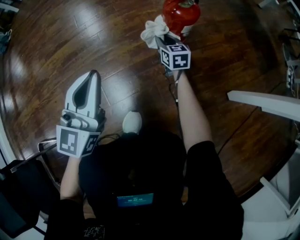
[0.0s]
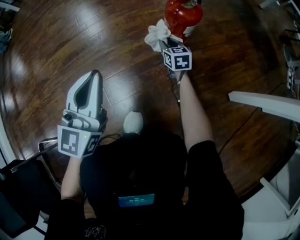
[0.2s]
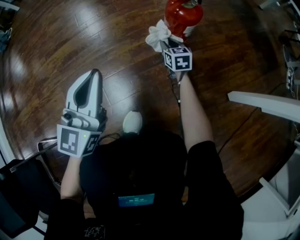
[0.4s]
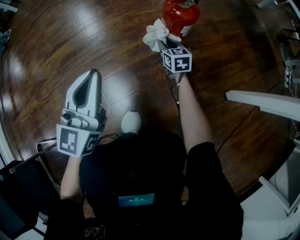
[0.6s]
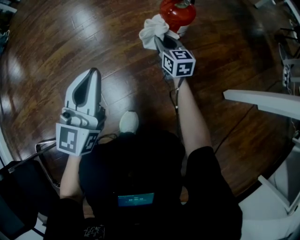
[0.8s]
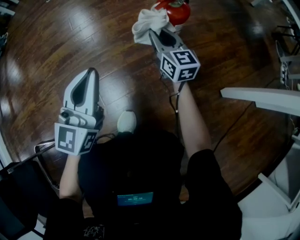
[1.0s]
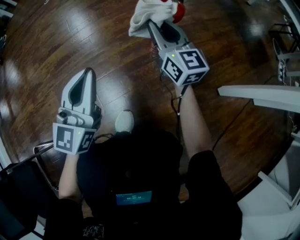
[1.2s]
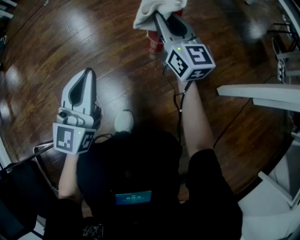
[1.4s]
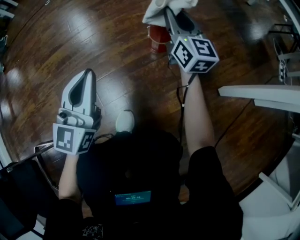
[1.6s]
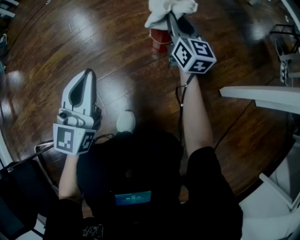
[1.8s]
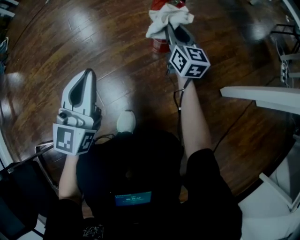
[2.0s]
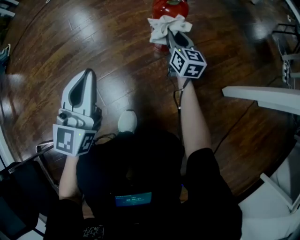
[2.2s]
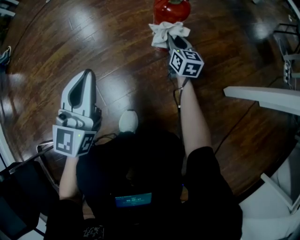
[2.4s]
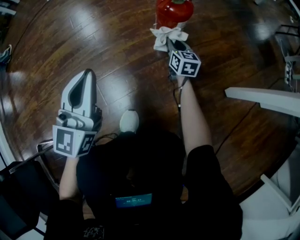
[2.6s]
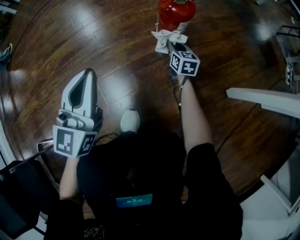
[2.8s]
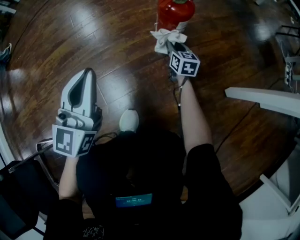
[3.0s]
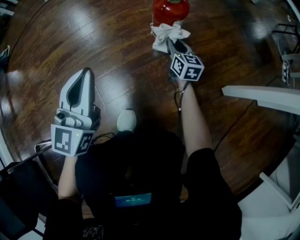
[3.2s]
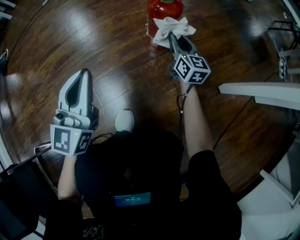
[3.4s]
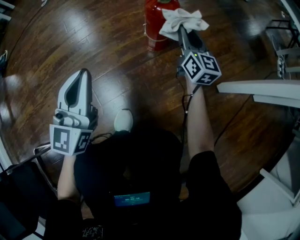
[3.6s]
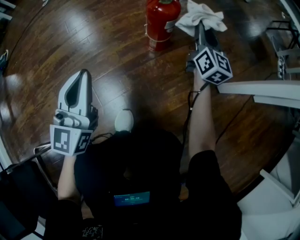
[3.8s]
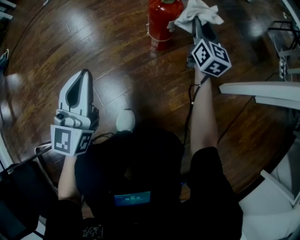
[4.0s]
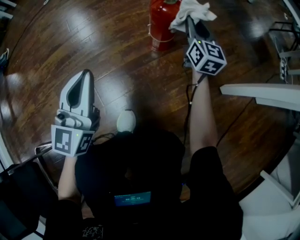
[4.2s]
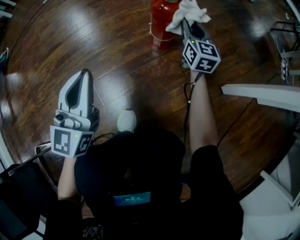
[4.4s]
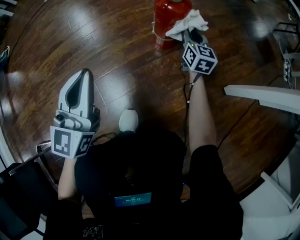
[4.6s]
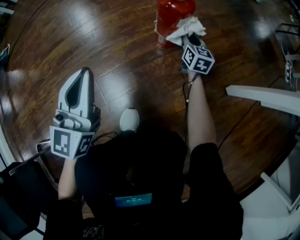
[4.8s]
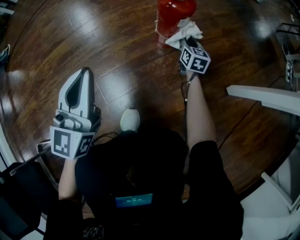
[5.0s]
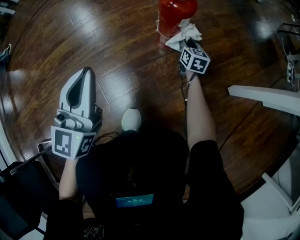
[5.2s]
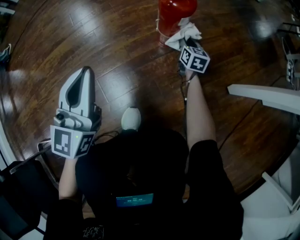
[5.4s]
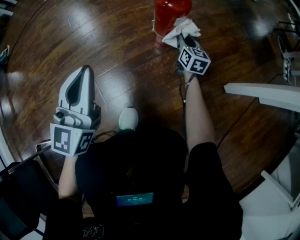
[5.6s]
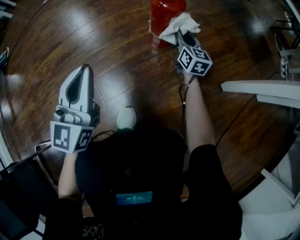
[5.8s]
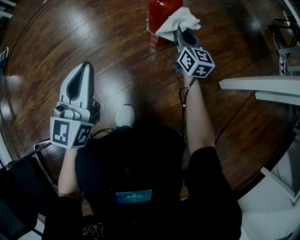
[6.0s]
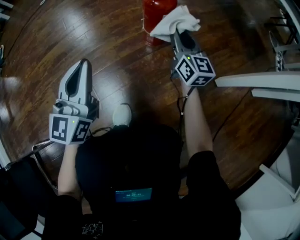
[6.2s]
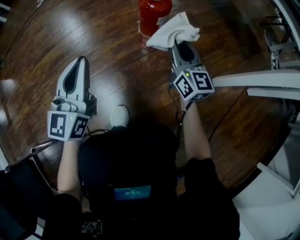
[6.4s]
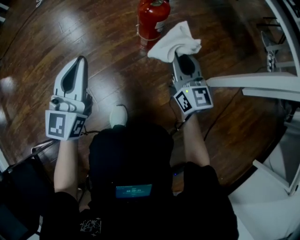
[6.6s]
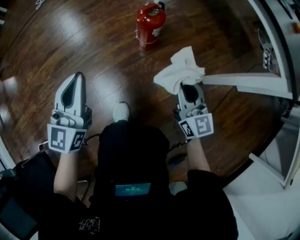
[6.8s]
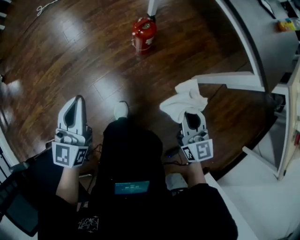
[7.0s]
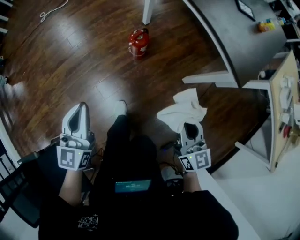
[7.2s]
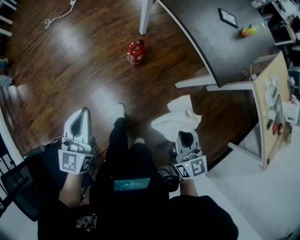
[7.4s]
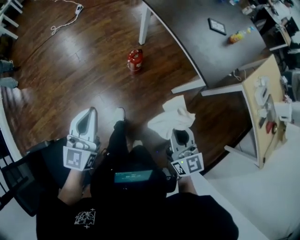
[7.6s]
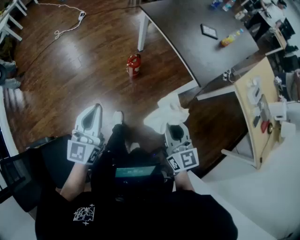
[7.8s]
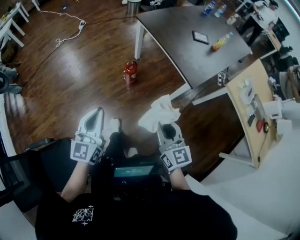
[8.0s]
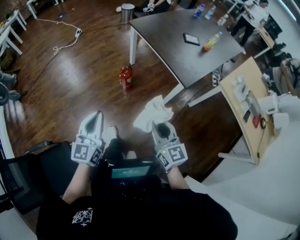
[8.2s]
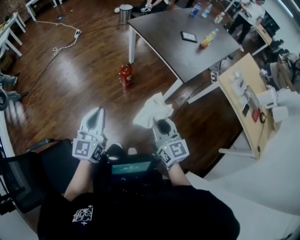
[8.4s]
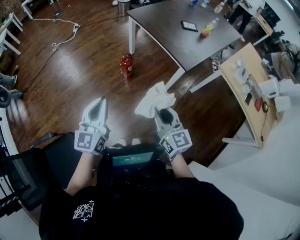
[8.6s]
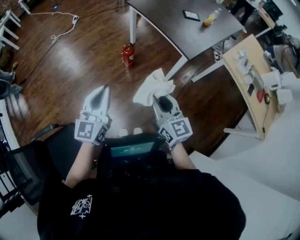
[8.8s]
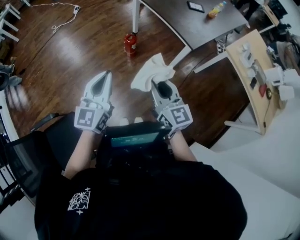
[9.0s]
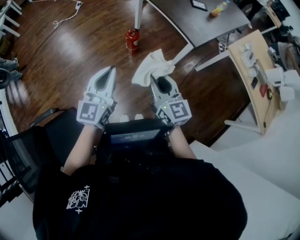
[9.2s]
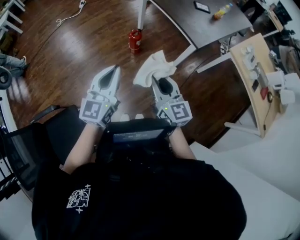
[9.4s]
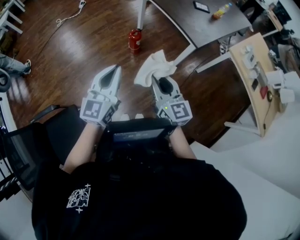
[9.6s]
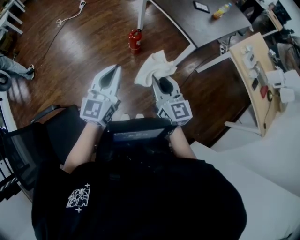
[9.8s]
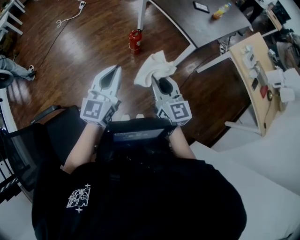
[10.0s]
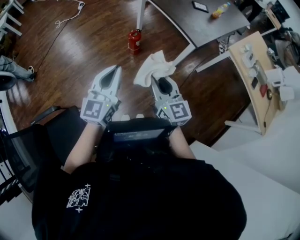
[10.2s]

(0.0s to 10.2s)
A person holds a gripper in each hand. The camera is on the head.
0.0s - 1.4s: The right gripper travels upward by approximately 25 cm, and tilts its fingers approximately 30 degrees upward.
1.4s - 3.0s: The right gripper goes roughly 30 cm downward, and tilts its fingers some 30 degrees downward.
3.0s - 4.4s: The right gripper heads upward, covering approximately 15 cm, and rotates roughly 20 degrees.
4.4s - 5.8s: The right gripper moves downward, about 5 cm.
5.8s - 7.2s: The right gripper is displaced upward and backward by about 60 cm; the left gripper is displaced upward by about 30 cm.
7.2s - 8.8s: The grippers both shift upward and backward by approximately 35 cm.
8.8s - 10.2s: The right gripper ends up about 5 cm from where it was.

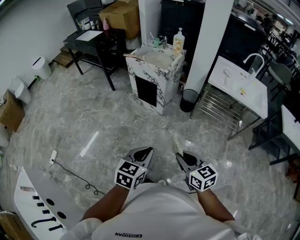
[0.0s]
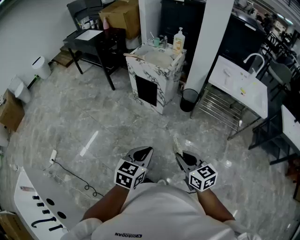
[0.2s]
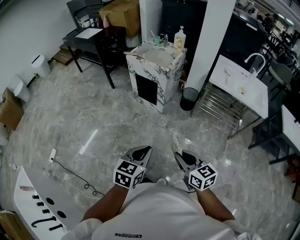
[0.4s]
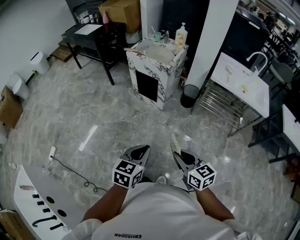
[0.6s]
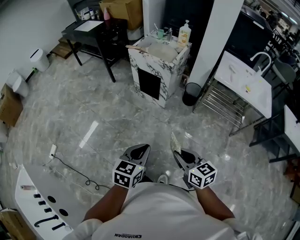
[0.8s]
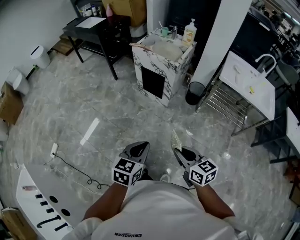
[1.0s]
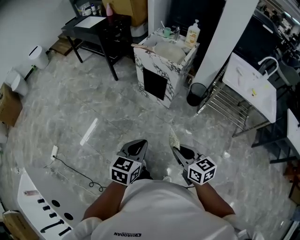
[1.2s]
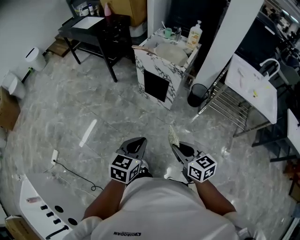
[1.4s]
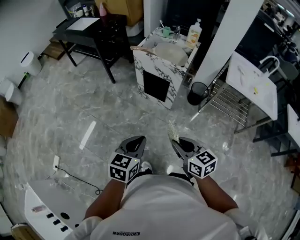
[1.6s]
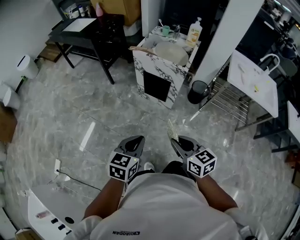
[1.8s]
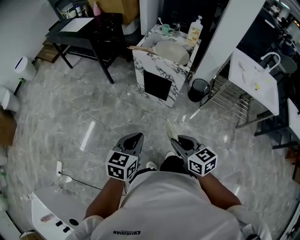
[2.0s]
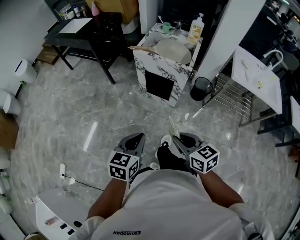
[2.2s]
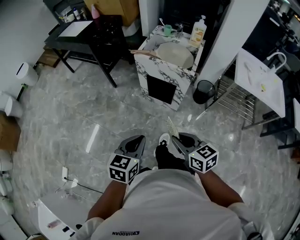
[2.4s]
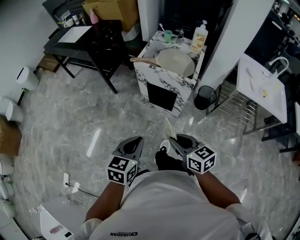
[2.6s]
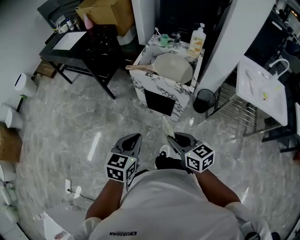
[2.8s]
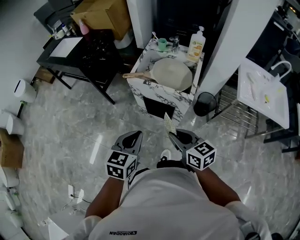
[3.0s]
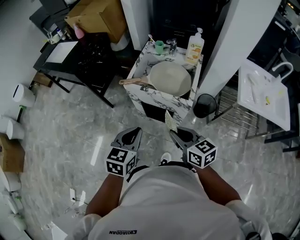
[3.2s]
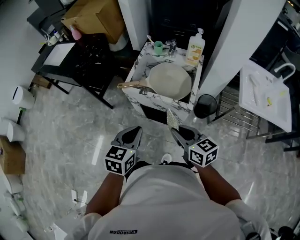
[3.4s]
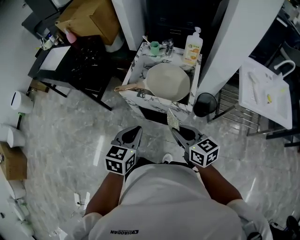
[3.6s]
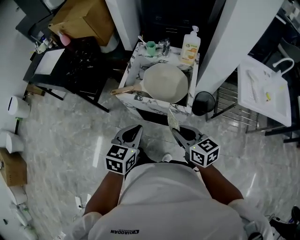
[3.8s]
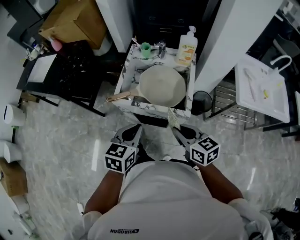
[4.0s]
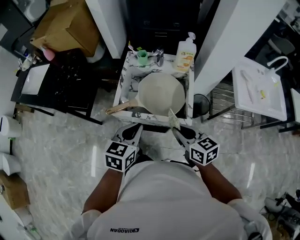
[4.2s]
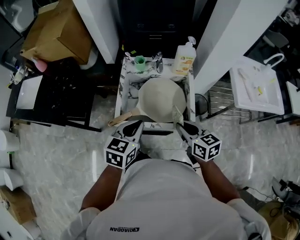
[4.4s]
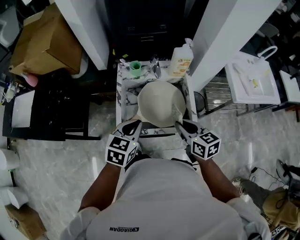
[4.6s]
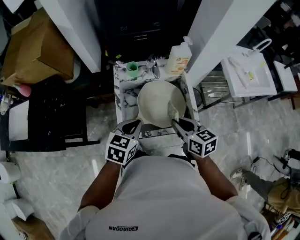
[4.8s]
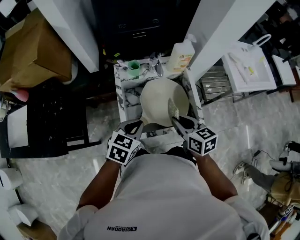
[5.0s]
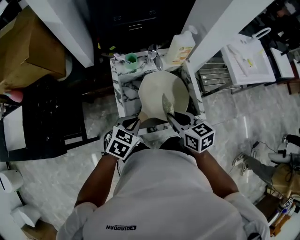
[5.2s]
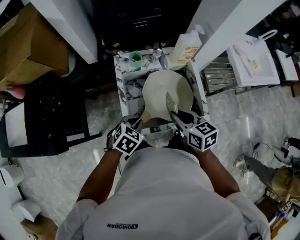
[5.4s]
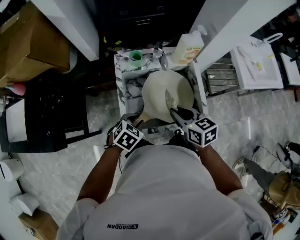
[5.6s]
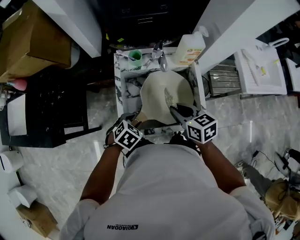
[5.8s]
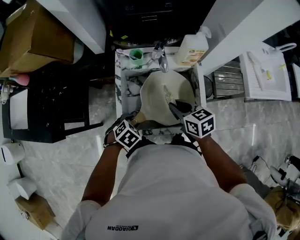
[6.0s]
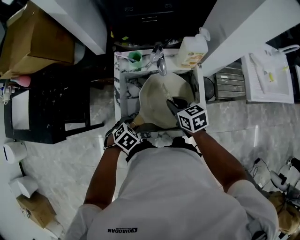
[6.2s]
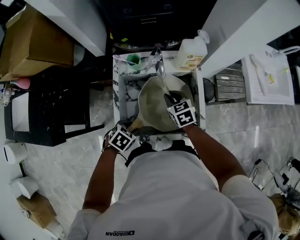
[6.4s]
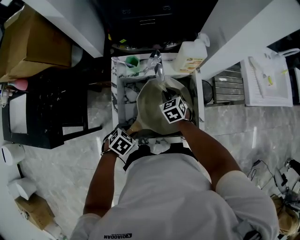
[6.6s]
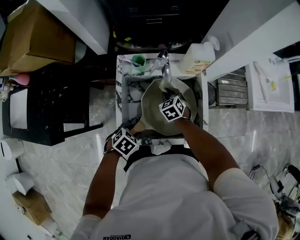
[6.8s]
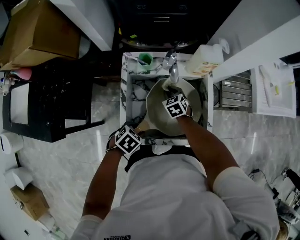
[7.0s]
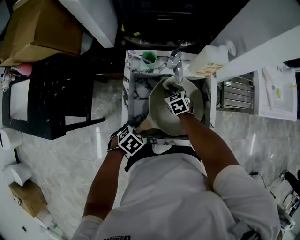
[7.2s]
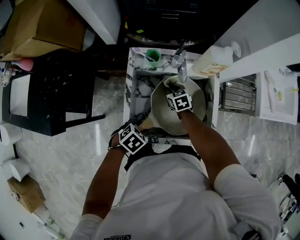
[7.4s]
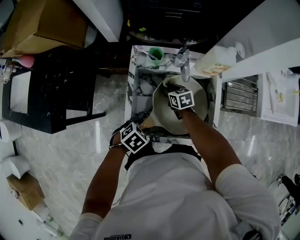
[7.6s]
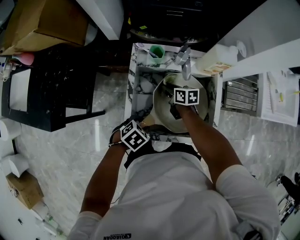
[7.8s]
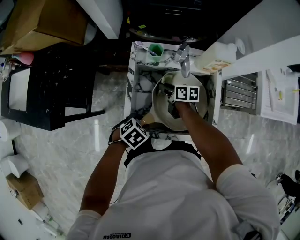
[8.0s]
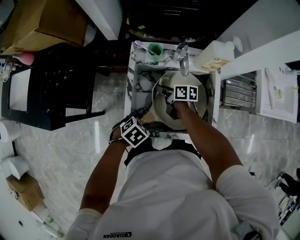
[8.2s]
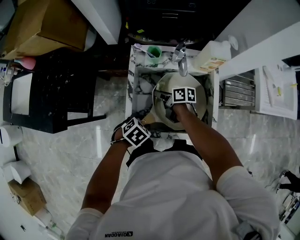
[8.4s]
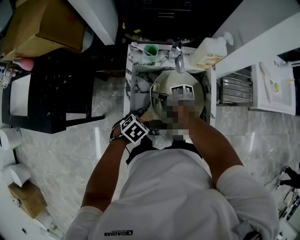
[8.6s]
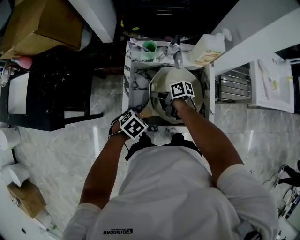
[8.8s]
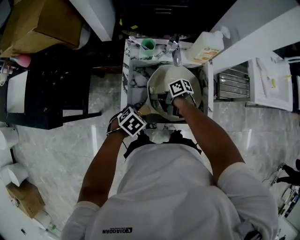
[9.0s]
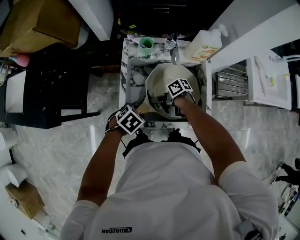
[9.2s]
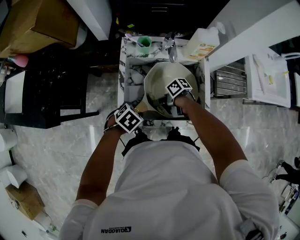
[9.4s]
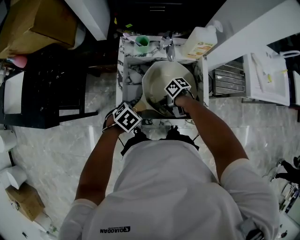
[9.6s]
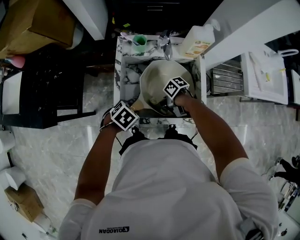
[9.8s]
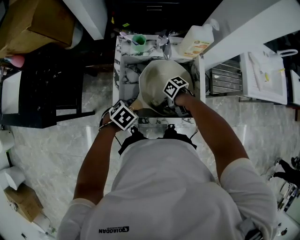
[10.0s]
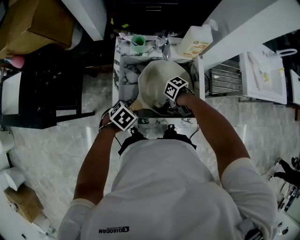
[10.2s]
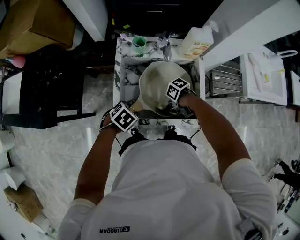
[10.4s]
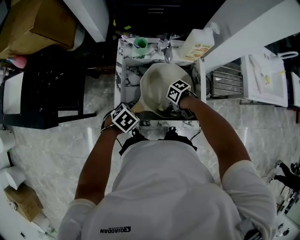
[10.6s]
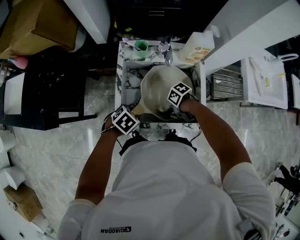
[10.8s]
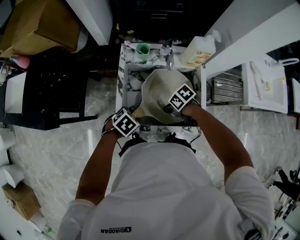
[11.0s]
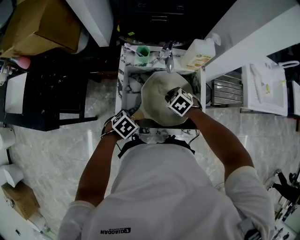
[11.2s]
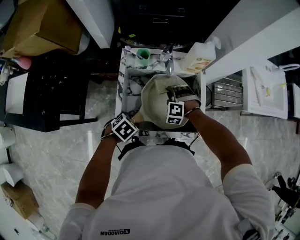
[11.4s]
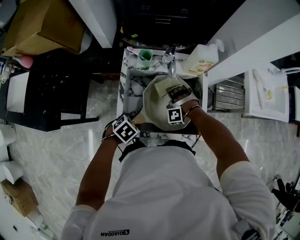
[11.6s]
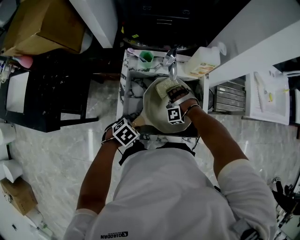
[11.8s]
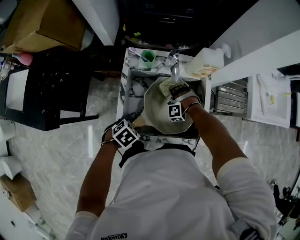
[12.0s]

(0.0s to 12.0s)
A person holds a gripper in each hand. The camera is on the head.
0.0s - 1.6s: Both grippers travel together forward and to the left, roughly 30 cm.
1.6s - 3.0s: Both grippers move forward, roughly 30 cm.
3.0s - 4.4s: The two grippers go roughly 30 cm forward. The right gripper changes its angle by approximately 20 degrees; the left gripper rotates about 20 degrees.
4.4s - 6.0s: The right gripper shifts approximately 15 cm forward, to the left and downward, while the left gripper shifts roughly 20 cm downward, tilts its fingers some 40 degrees downward, and opens its fingers.
6.0s - 7.6s: The right gripper shifts some 25 cm downward, to the left and forward.
7.6s - 9.0s: The right gripper ends up roughly 15 cm from where it was, and swivels some 60 degrees.
9.0s - 10.4s: The right gripper changes place by approximately 15 cm, and changes its angle by roughly 50 degrees.
10.4s - 12.0s: The right gripper moves approximately 5 cm upward and comes back, and changes its angle by about 130 degrees.

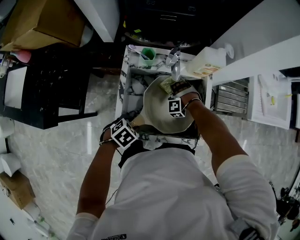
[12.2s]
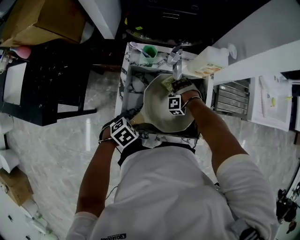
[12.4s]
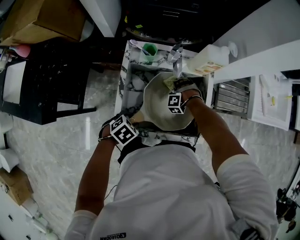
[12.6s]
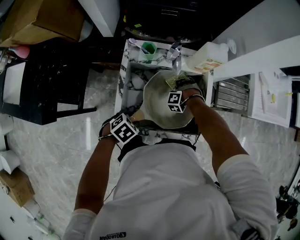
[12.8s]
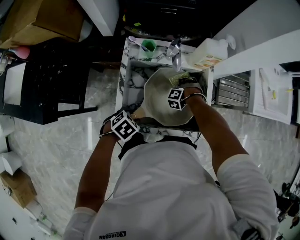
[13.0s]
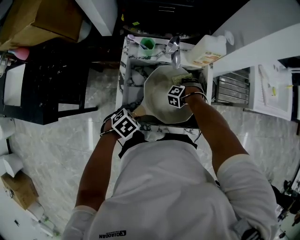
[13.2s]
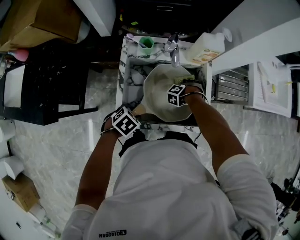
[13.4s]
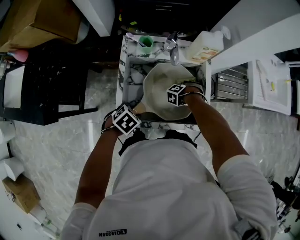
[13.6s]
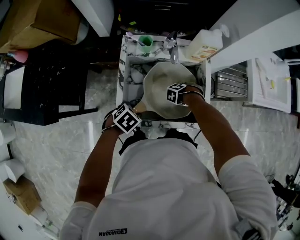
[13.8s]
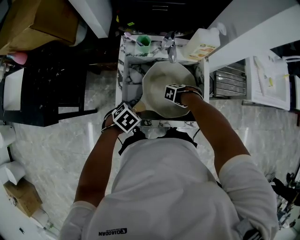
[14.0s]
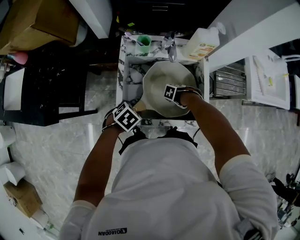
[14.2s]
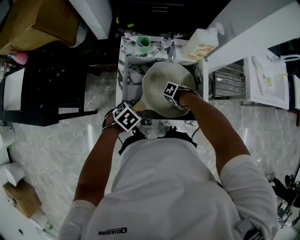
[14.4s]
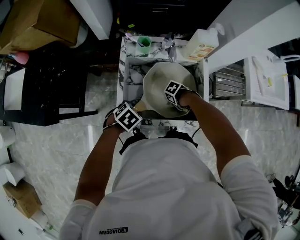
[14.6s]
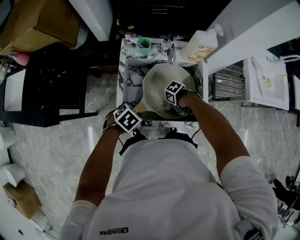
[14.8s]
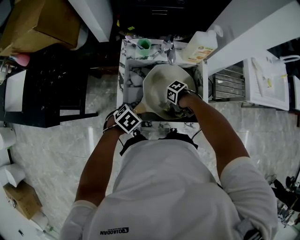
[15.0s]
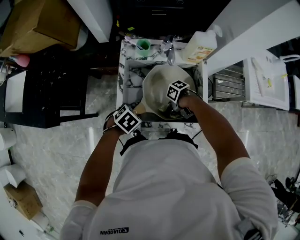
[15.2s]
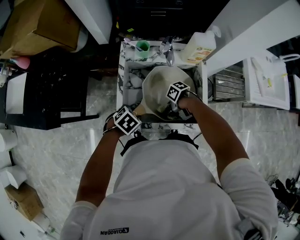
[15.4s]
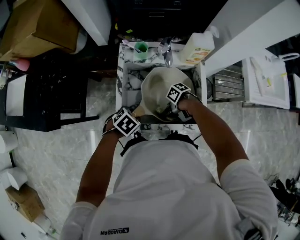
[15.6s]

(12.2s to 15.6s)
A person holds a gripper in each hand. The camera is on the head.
12.2s - 13.8s: The right gripper shifts by roughly 15 cm, and changes its angle by roughly 60 degrees.
13.8s - 15.6s: The right gripper ends up about 20 cm from where it was, and swivels some 90 degrees.
